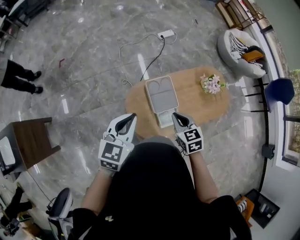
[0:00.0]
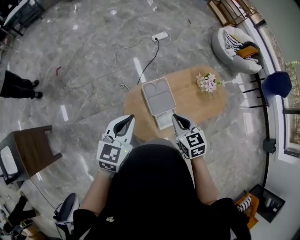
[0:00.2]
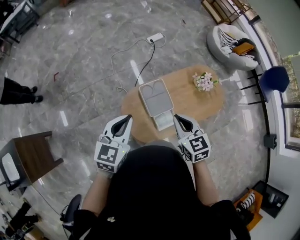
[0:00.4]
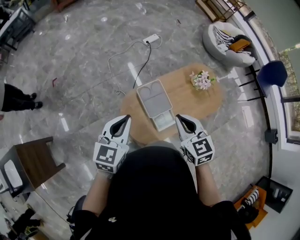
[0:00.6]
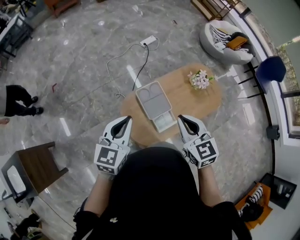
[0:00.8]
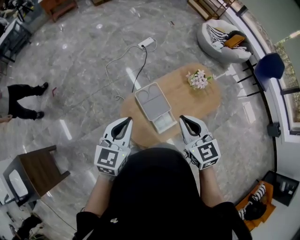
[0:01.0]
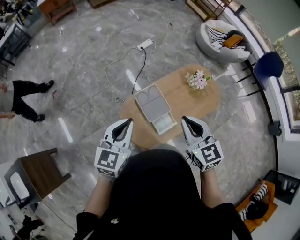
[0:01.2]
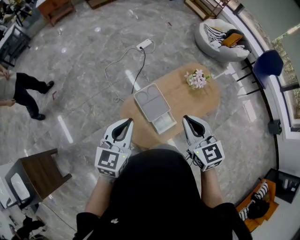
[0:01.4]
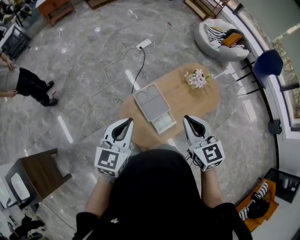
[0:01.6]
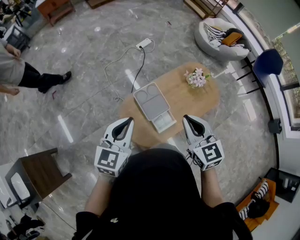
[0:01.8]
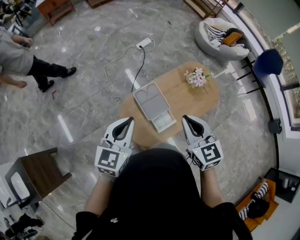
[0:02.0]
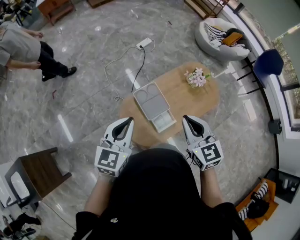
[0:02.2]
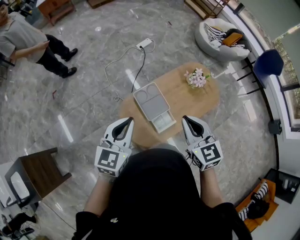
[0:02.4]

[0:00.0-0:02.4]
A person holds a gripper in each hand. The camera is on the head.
0:00.0 to 0:01.2: The left gripper ends up about 5 cm from where it was; the right gripper travels upward by roughly 15 cm, and swivels about 20 degrees.
0:01.2 to 0:02.4: The grippers move only a little.

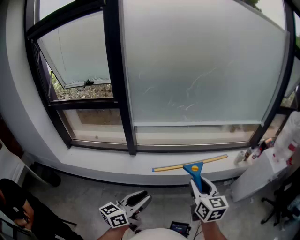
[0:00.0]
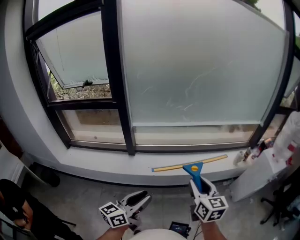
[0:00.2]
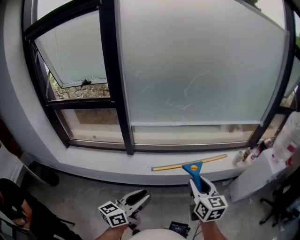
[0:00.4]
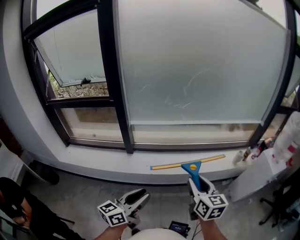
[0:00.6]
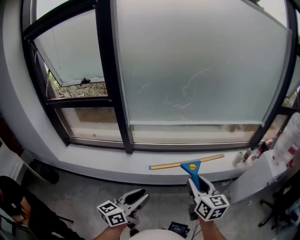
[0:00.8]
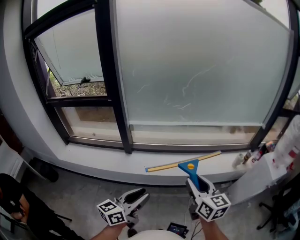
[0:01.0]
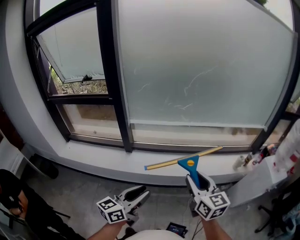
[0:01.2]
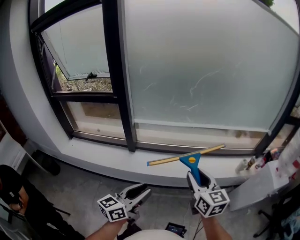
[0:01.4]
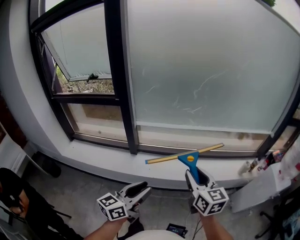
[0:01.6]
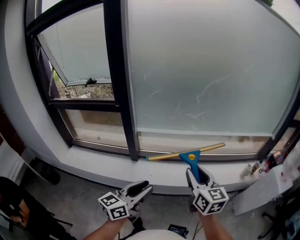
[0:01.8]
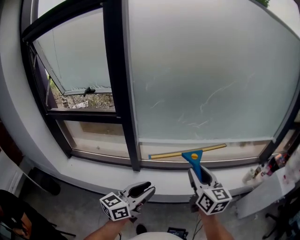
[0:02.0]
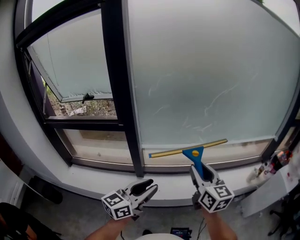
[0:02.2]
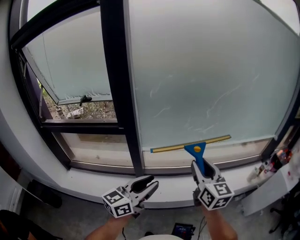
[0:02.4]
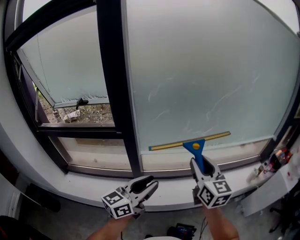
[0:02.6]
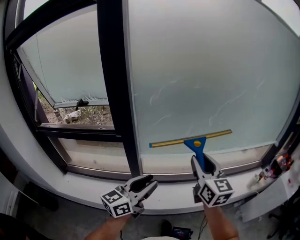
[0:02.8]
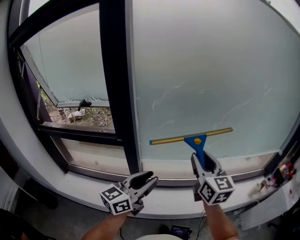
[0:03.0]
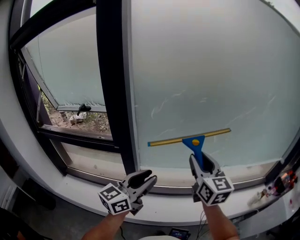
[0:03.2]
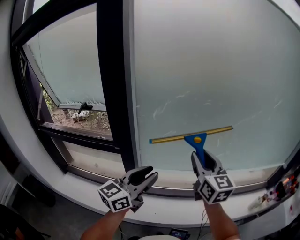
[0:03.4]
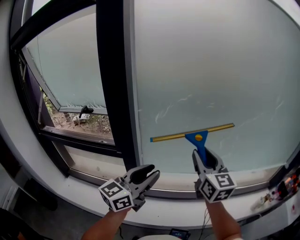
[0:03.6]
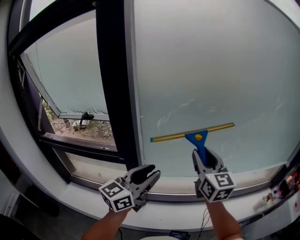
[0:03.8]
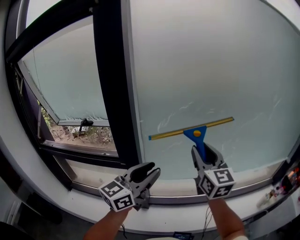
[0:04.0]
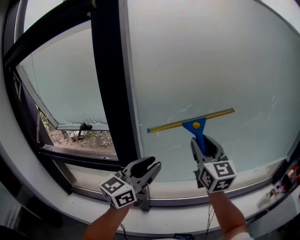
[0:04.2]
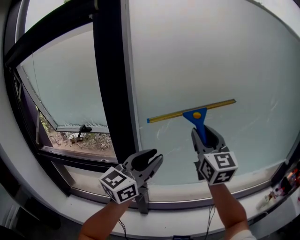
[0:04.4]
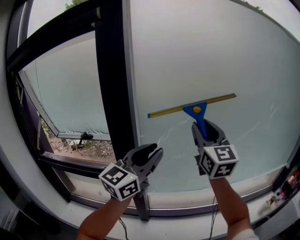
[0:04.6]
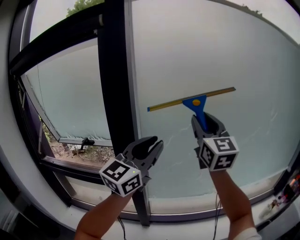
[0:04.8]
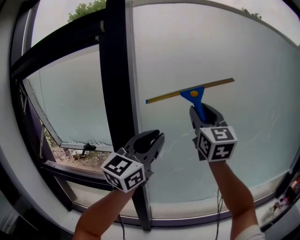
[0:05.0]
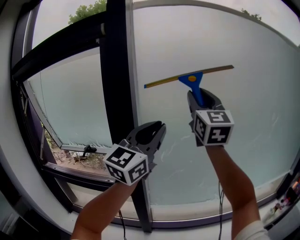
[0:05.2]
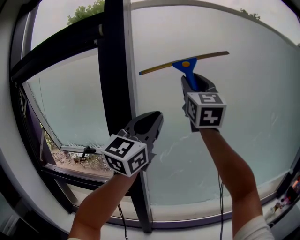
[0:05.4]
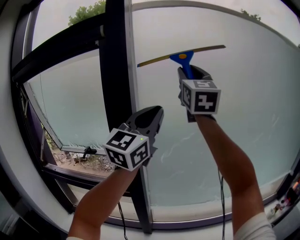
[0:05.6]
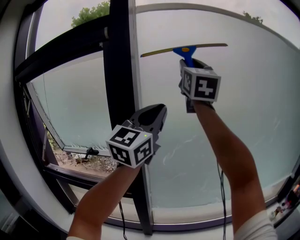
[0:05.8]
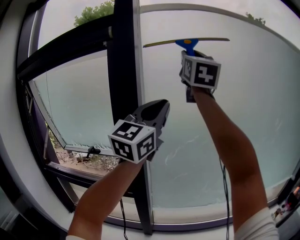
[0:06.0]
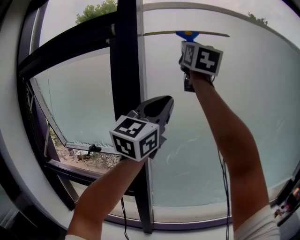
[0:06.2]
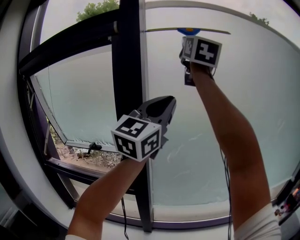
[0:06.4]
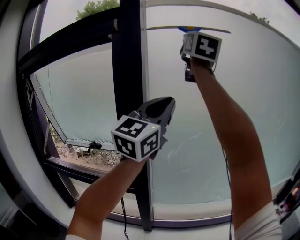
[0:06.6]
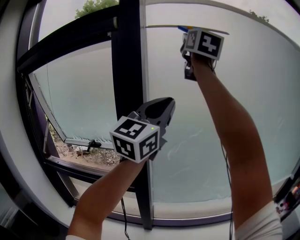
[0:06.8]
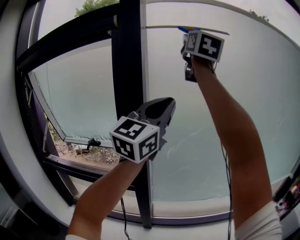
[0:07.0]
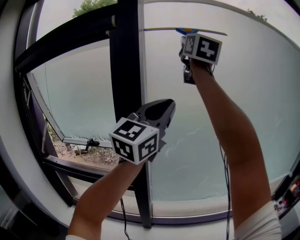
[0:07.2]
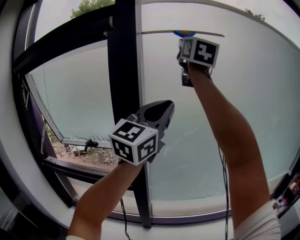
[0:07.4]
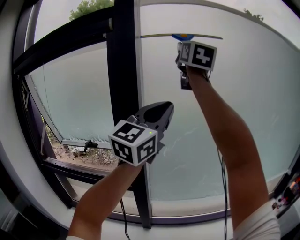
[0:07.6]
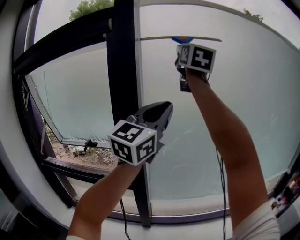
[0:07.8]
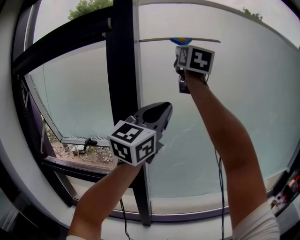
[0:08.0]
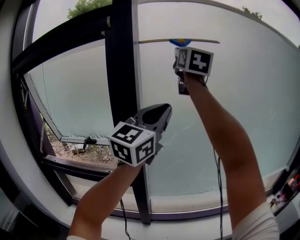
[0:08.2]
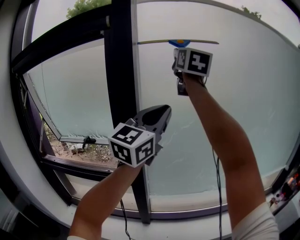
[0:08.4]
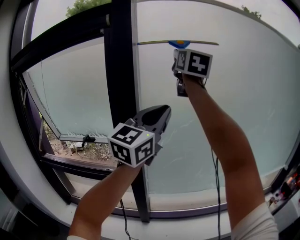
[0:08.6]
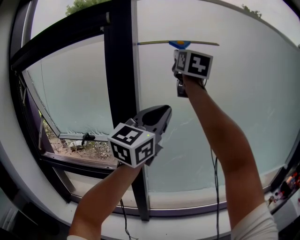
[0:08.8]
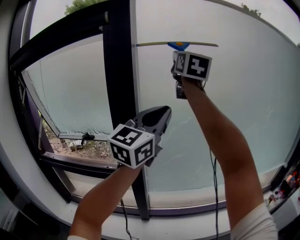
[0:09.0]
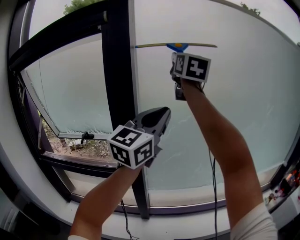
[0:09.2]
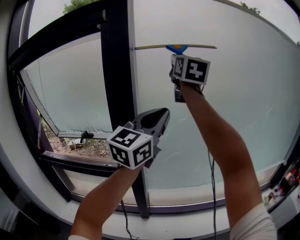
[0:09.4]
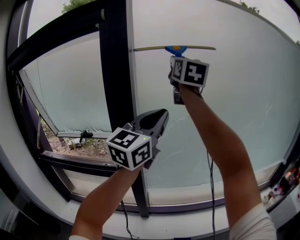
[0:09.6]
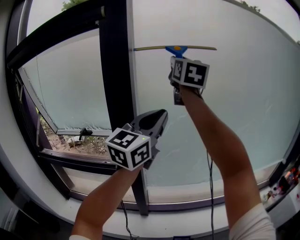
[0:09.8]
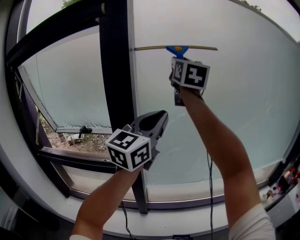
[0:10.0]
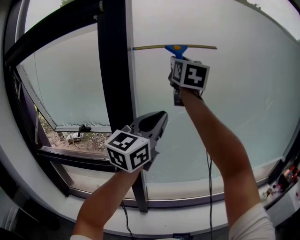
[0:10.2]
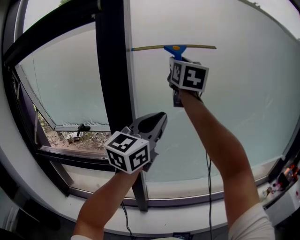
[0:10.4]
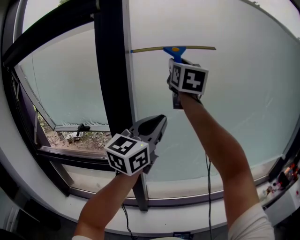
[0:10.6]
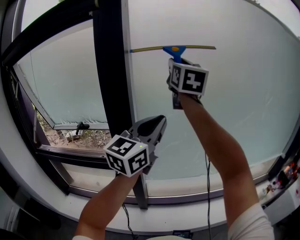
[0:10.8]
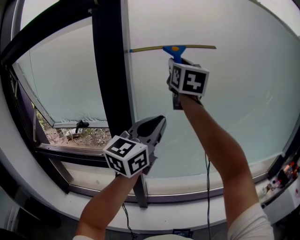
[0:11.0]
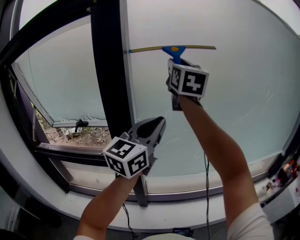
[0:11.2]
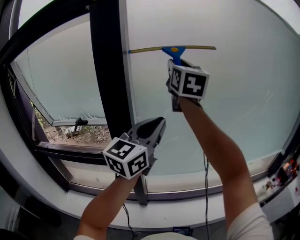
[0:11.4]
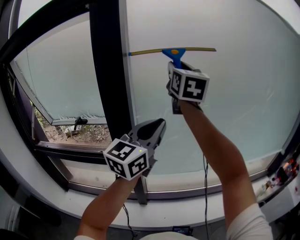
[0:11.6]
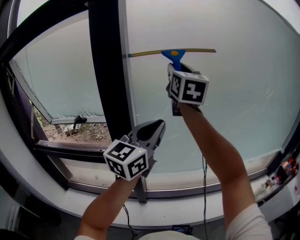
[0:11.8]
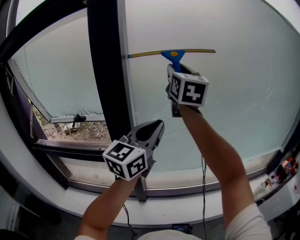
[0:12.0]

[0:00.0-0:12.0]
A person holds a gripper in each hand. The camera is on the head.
0:00.0 to 0:01.6: Both grippers travel together forward, some 10 cm.
0:01.6 to 0:03.0: The left gripper travels forward and to the left by approximately 35 cm; the right gripper moves forward, to the left and upward, about 35 cm.
0:03.0 to 0:04.4: The left gripper shifts some 20 cm upward and forward. Meanwhile the right gripper is displaced upward, forward and to the left by approximately 20 cm.
0:04.4 to 0:06.0: Both grippers move upward, approximately 30 cm. The left gripper turns by roughly 30 degrees, and closes.
0:06.0 to 0:07.6: The grippers move only a little.
0:07.6 to 0:09.0: The right gripper travels downward by about 5 cm.
0:09.0 to 0:10.4: The two grippers go roughly 5 cm downward.
0:10.4 to 0:12.0: Both grippers travel together downward, about 10 cm.

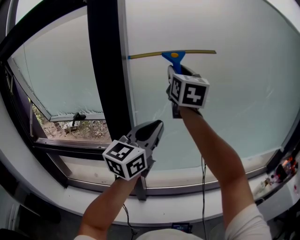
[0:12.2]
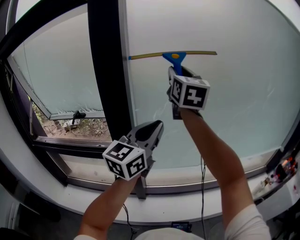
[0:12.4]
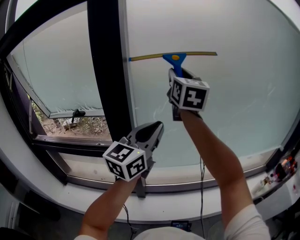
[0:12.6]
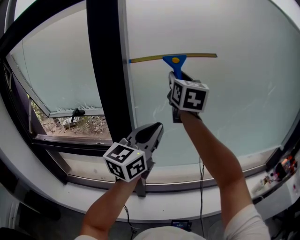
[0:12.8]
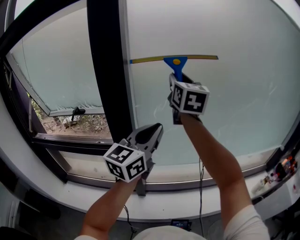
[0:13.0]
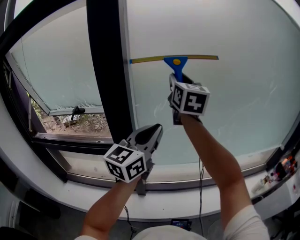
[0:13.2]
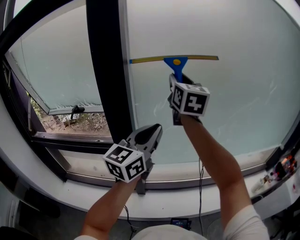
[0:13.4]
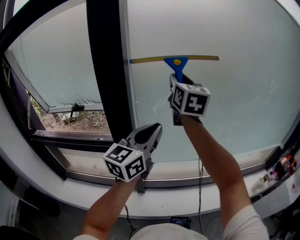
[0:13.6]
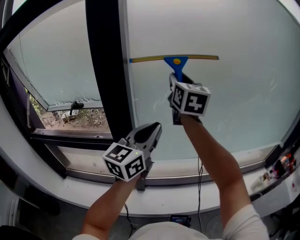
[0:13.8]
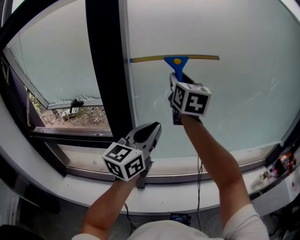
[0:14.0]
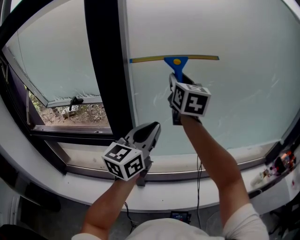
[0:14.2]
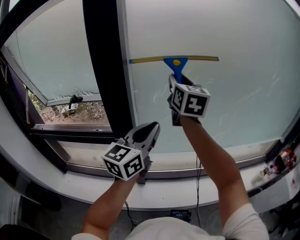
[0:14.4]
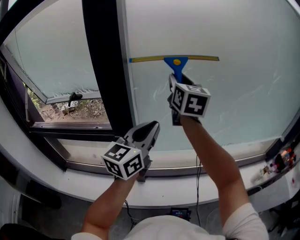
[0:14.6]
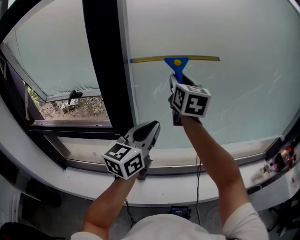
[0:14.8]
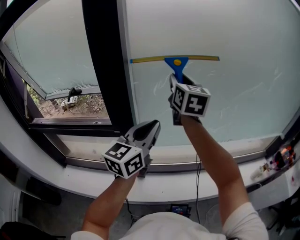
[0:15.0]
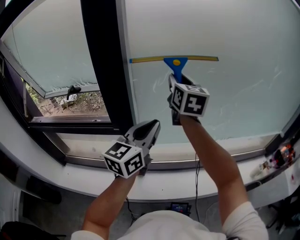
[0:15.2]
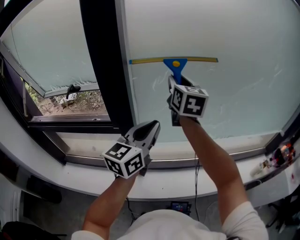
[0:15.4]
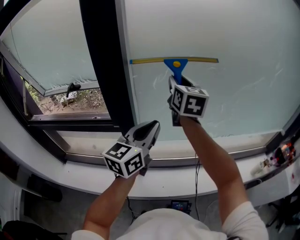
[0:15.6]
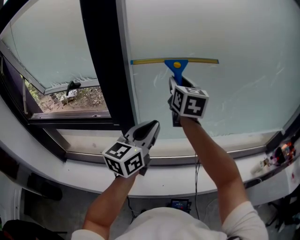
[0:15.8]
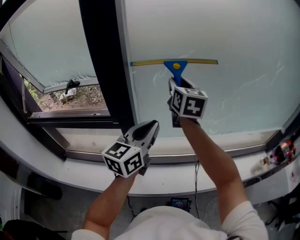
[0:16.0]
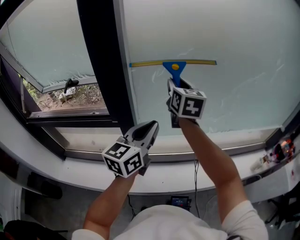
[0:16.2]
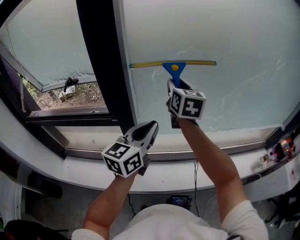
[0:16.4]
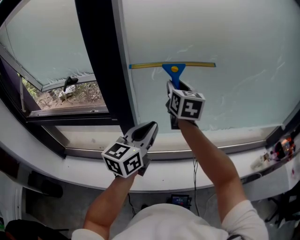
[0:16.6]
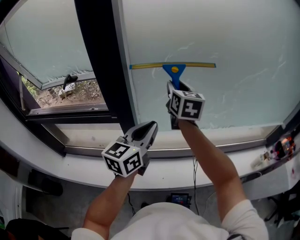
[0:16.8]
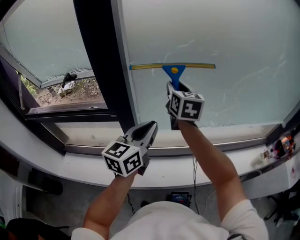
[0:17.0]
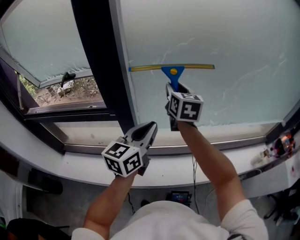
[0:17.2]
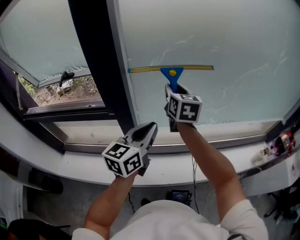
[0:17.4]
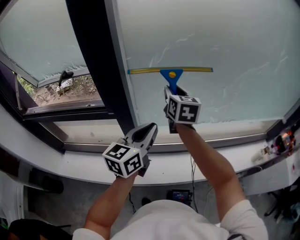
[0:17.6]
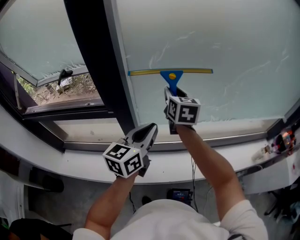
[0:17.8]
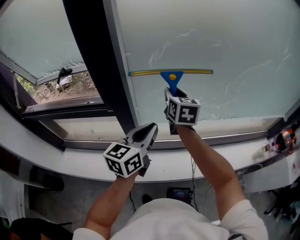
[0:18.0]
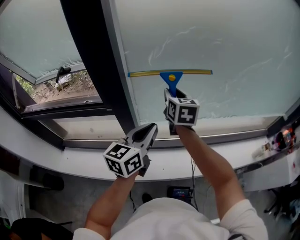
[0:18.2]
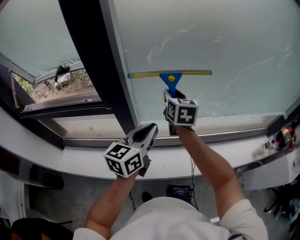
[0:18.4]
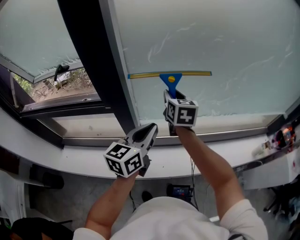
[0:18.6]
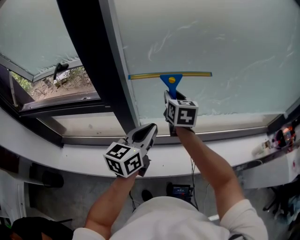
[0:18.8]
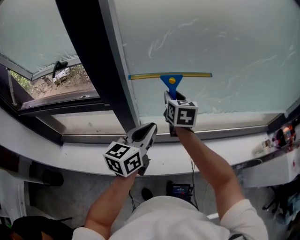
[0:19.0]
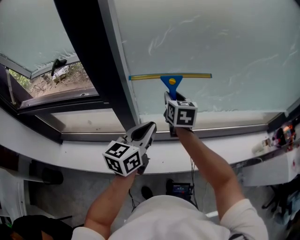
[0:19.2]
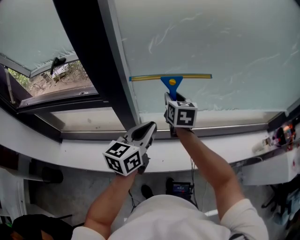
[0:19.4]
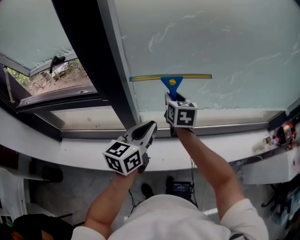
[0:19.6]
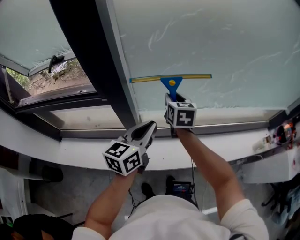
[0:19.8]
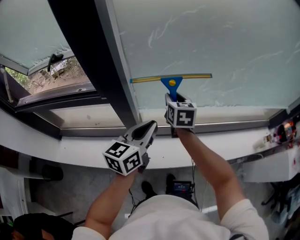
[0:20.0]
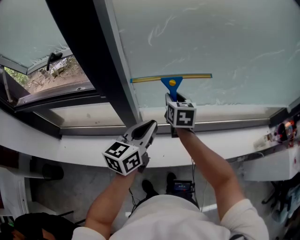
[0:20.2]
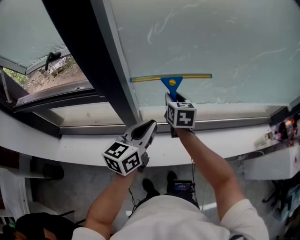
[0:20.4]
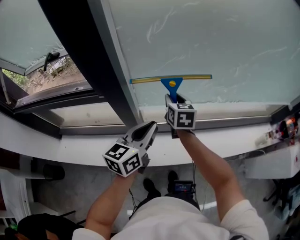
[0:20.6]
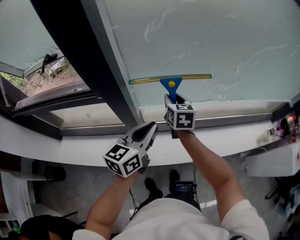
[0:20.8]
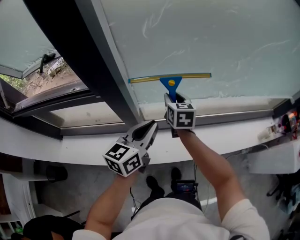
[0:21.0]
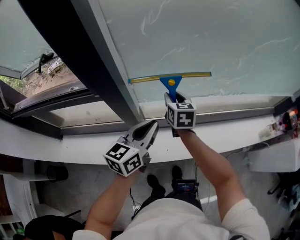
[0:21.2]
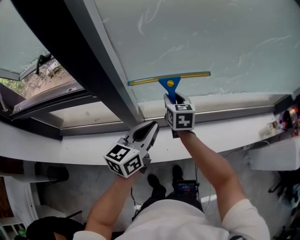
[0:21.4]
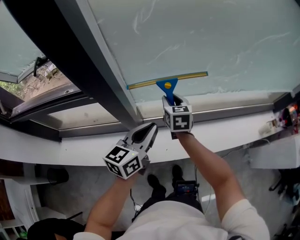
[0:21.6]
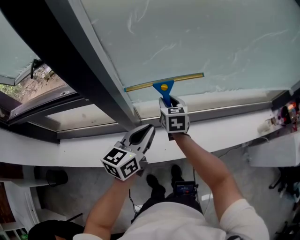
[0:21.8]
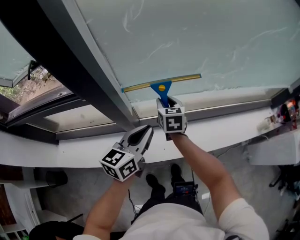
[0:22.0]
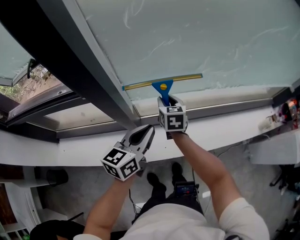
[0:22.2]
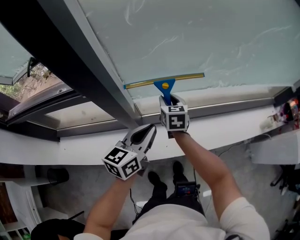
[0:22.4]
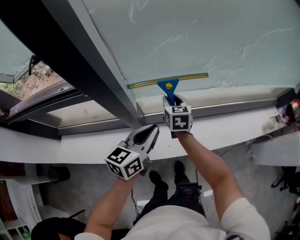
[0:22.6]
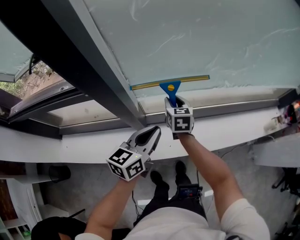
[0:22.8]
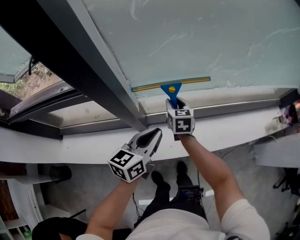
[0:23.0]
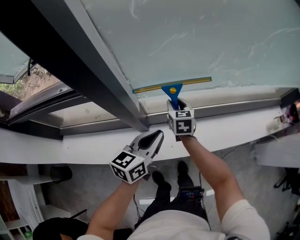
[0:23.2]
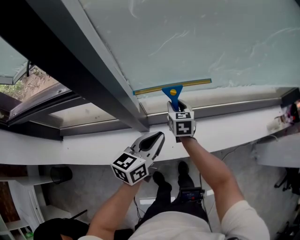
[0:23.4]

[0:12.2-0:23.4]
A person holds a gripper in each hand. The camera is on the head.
0:12.2 to 0:13.8: The left gripper travels downward by about 5 cm. Meanwhile the right gripper is displaced downward by about 10 cm.
0:13.8 to 0:15.4: Both grippers travel together downward, approximately 10 cm.
0:15.4 to 0:17.0: The right gripper heads downward, covering about 10 cm; the left gripper is displaced downward by about 5 cm.
0:17.0 to 0:18.6: The left gripper travels downward by approximately 5 cm. The right gripper goes about 10 cm downward.
0:18.6 to 0:20.2: The right gripper shifts roughly 10 cm downward.
0:20.2 to 0:21.8: The left gripper shifts about 5 cm downward. Meanwhile the right gripper shifts some 10 cm downward.
0:21.8 to 0:23.4: Both grippers move downward, roughly 10 cm.
